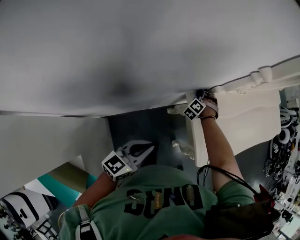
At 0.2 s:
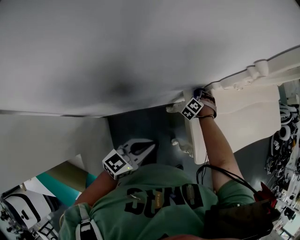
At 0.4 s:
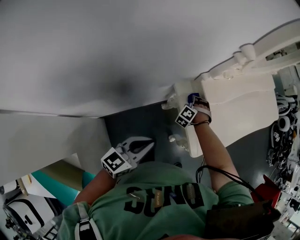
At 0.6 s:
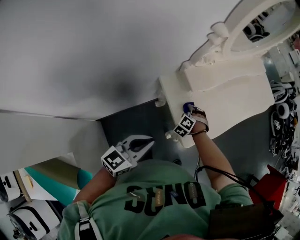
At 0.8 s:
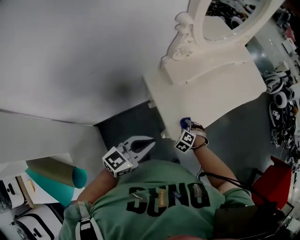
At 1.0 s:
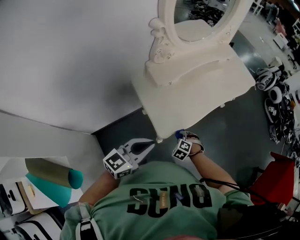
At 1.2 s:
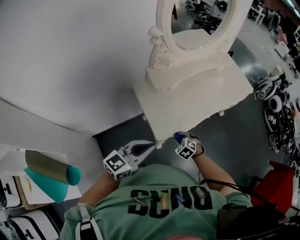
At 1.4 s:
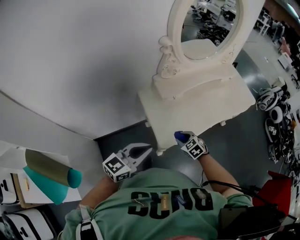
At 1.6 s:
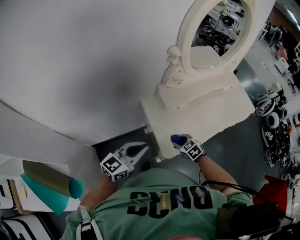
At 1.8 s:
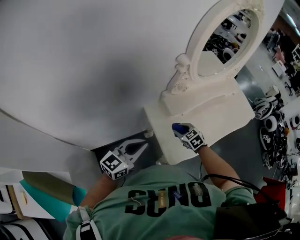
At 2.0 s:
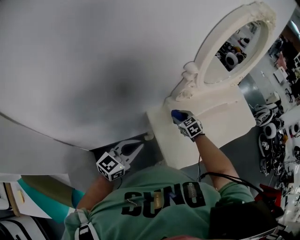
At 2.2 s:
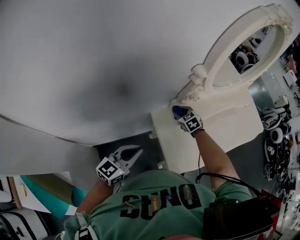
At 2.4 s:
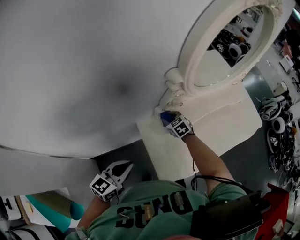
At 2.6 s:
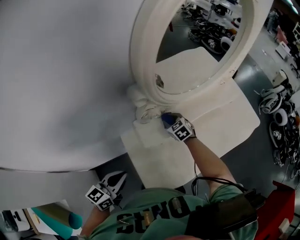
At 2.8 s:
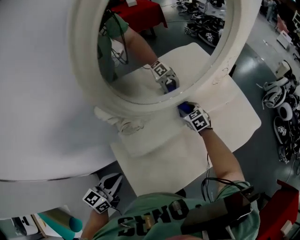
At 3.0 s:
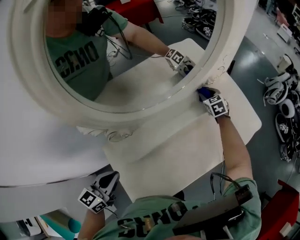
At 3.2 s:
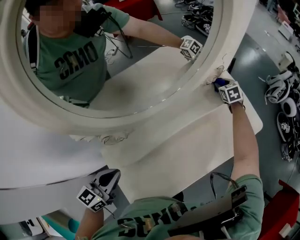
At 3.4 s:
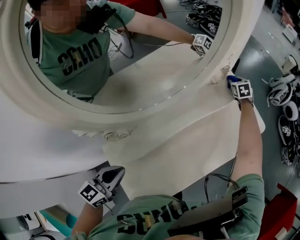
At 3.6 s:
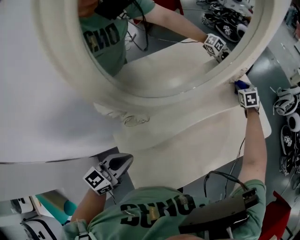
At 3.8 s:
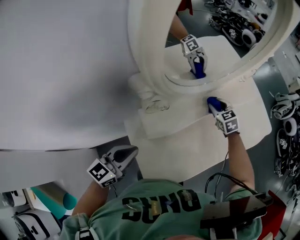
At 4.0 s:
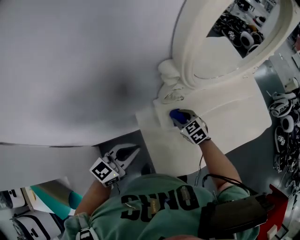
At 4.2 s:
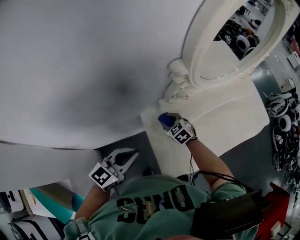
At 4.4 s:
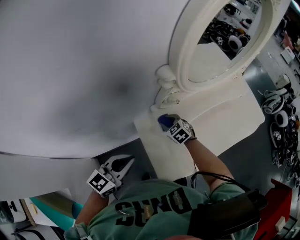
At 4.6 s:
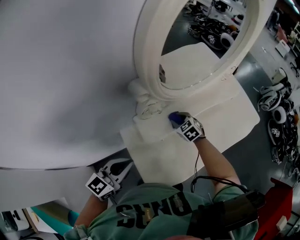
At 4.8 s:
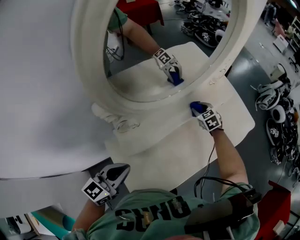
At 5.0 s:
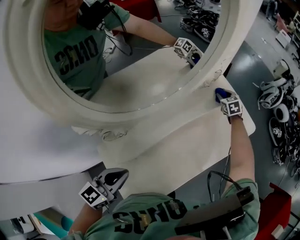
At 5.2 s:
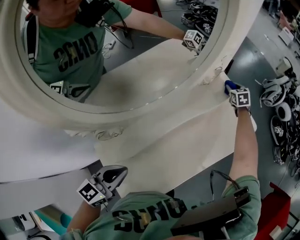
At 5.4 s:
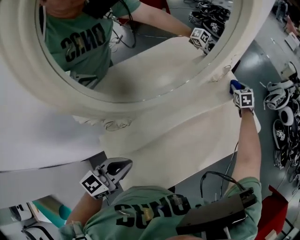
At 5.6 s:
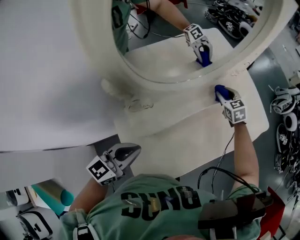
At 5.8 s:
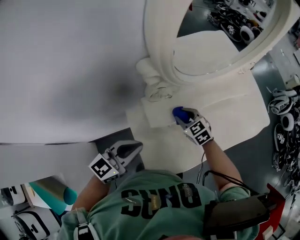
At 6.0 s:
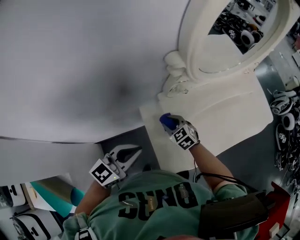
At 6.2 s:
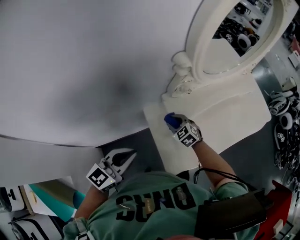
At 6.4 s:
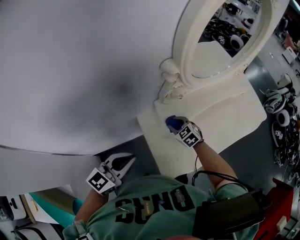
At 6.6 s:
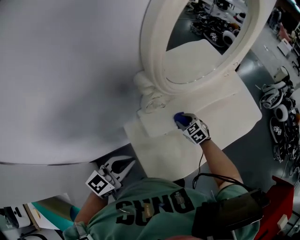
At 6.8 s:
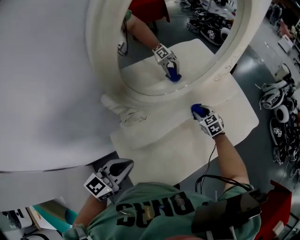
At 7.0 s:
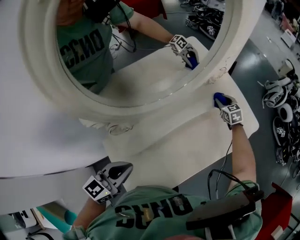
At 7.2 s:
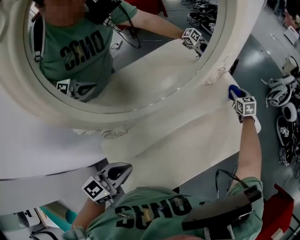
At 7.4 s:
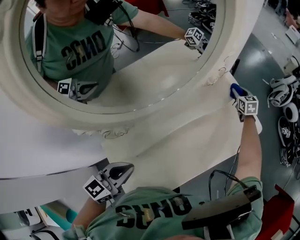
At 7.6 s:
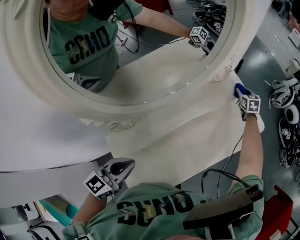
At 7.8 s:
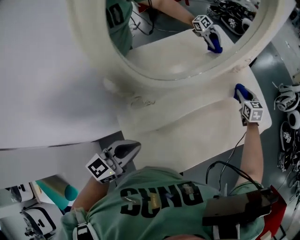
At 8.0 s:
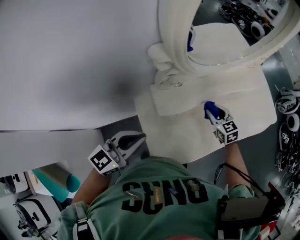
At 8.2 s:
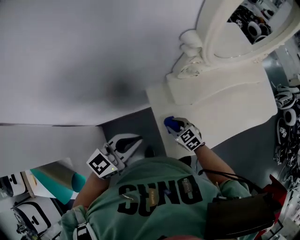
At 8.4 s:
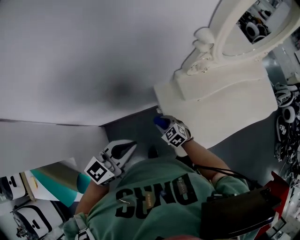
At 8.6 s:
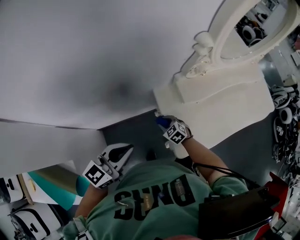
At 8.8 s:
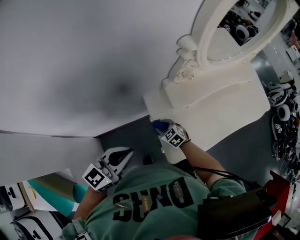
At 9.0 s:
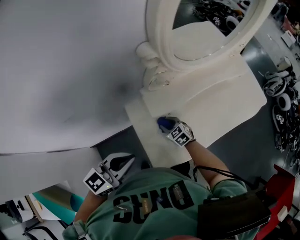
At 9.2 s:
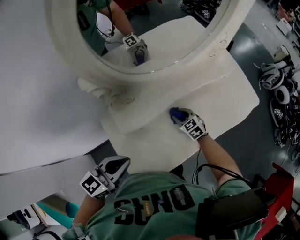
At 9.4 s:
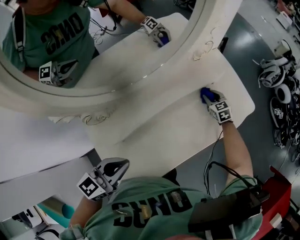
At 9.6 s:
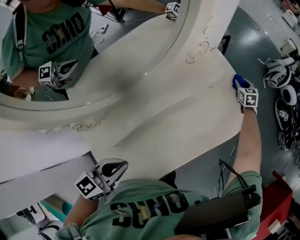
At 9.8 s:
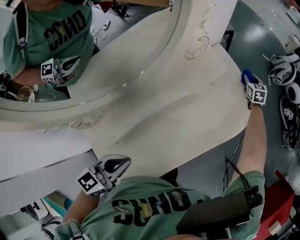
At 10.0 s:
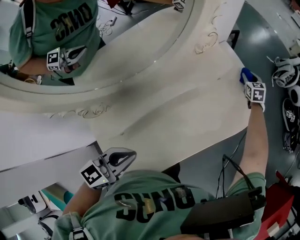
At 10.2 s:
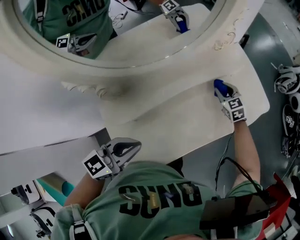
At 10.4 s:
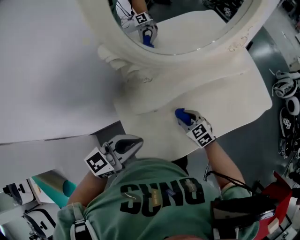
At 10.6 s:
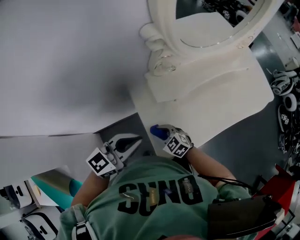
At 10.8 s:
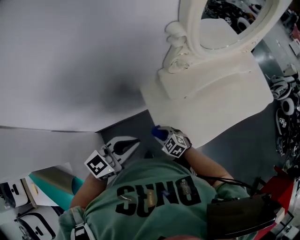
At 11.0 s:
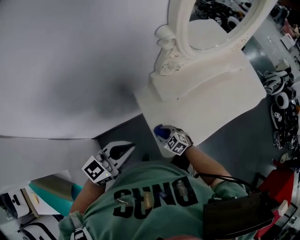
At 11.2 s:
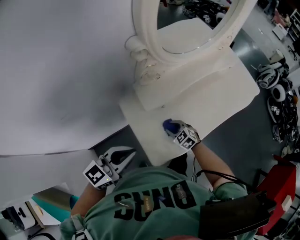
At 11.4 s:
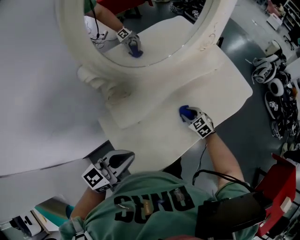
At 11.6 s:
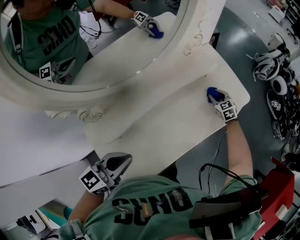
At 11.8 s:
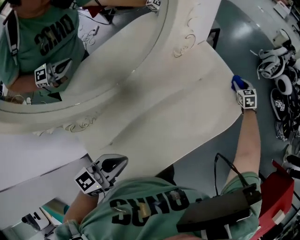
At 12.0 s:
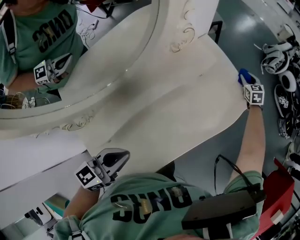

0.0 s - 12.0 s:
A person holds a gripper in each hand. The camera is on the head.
0.0 s - 1.6 s: The left gripper ends up some 25 cm from where it was. Meanwhile the right gripper shifts by approximately 35 cm, and turns by about 60 degrees.
1.6 s - 3.0 s: The left gripper is displaced forward and to the right by some 30 cm, while the right gripper heads forward and to the right, covering some 70 cm, and rotates some 30 degrees.
3.0 s - 4.4 s: The left gripper ends up about 20 cm from where it was, while the right gripper moves some 50 cm, and turns by some 30 degrees.
4.4 s - 6.0 s: The right gripper reaches roughly 5 cm downward, then returns. Meanwhile the left gripper reaches approximately 10 cm downward, then returns.
6.0 s - 7.6 s: The left gripper shifts by some 25 cm, while the right gripper shifts by roughly 80 cm, and changes its angle by about 50 degrees.
7.6 s - 9.0 s: The right gripper moves approximately 70 cm, and changes its angle by some 50 degrees.
10.4 s - 12.0 s: The right gripper moves some 70 cm, and swivels roughly 50 degrees; the left gripper ends up about 25 cm from where it was.

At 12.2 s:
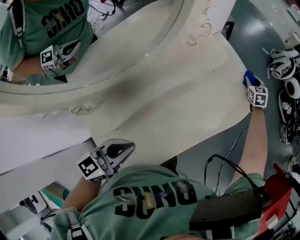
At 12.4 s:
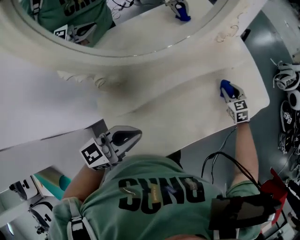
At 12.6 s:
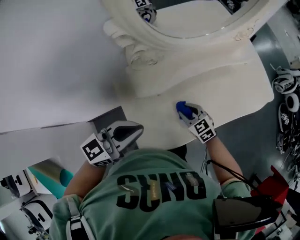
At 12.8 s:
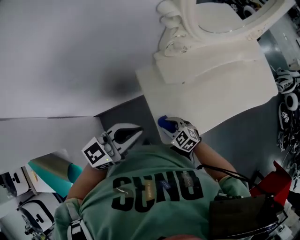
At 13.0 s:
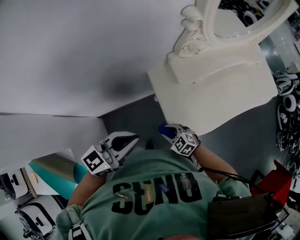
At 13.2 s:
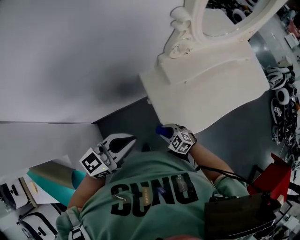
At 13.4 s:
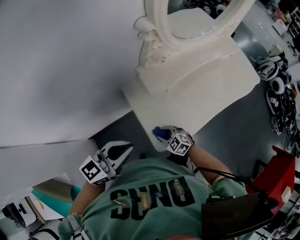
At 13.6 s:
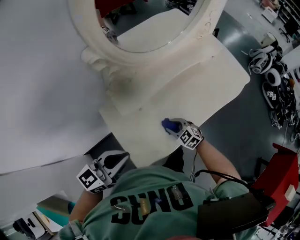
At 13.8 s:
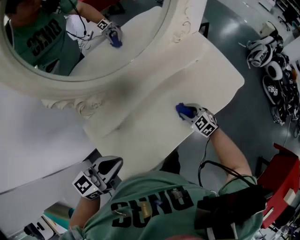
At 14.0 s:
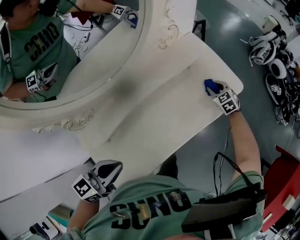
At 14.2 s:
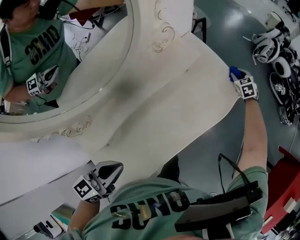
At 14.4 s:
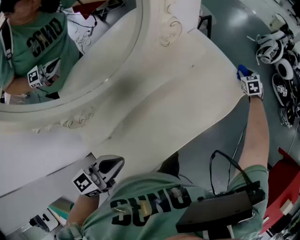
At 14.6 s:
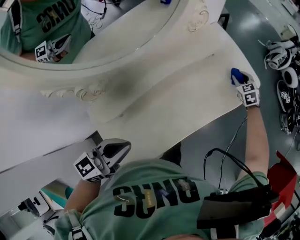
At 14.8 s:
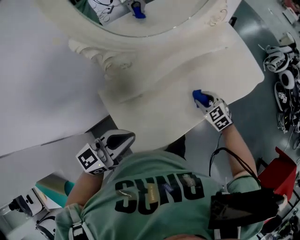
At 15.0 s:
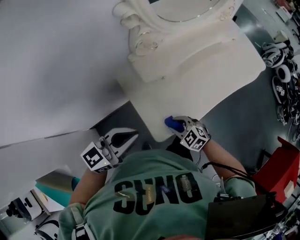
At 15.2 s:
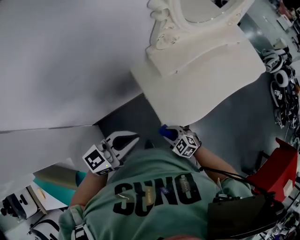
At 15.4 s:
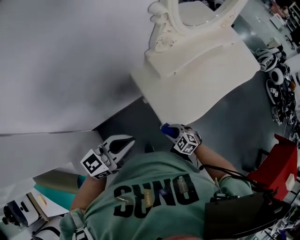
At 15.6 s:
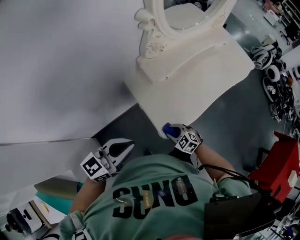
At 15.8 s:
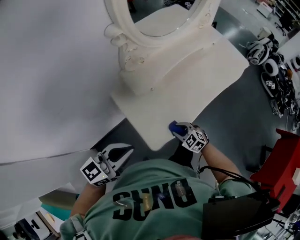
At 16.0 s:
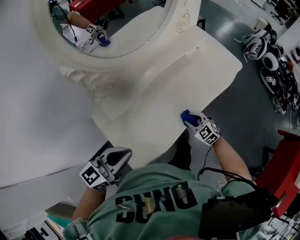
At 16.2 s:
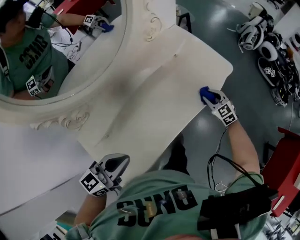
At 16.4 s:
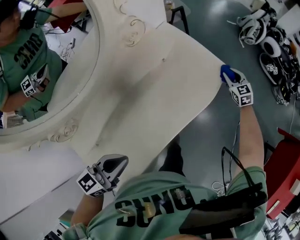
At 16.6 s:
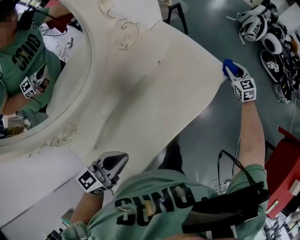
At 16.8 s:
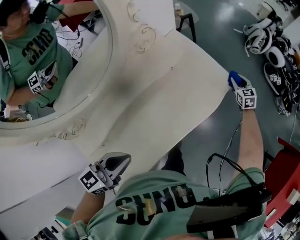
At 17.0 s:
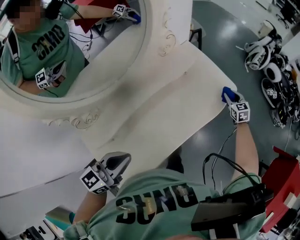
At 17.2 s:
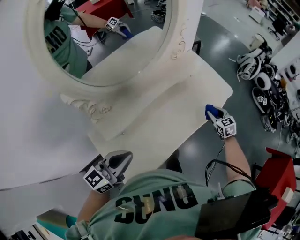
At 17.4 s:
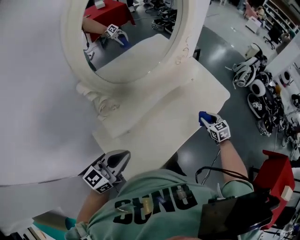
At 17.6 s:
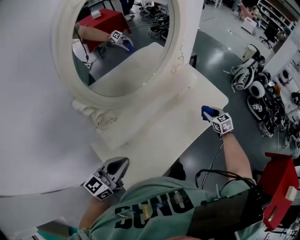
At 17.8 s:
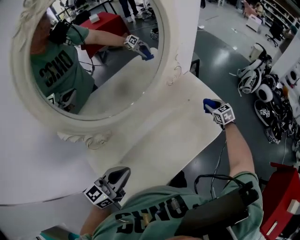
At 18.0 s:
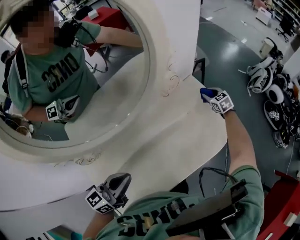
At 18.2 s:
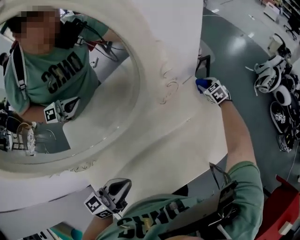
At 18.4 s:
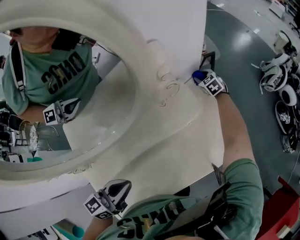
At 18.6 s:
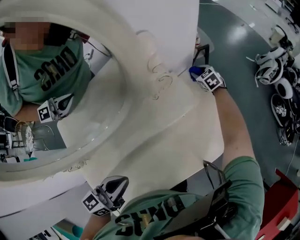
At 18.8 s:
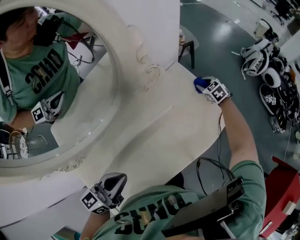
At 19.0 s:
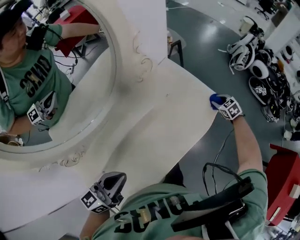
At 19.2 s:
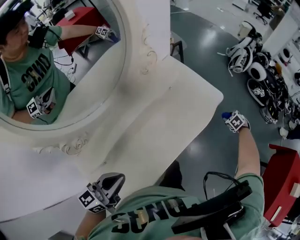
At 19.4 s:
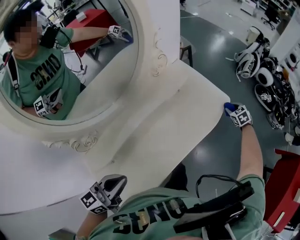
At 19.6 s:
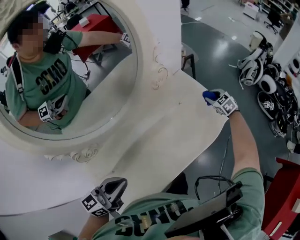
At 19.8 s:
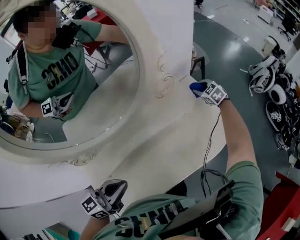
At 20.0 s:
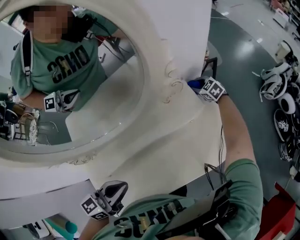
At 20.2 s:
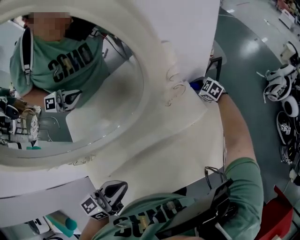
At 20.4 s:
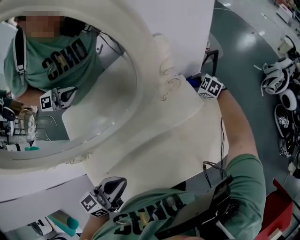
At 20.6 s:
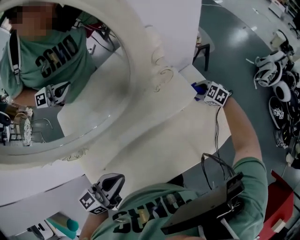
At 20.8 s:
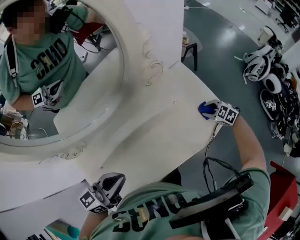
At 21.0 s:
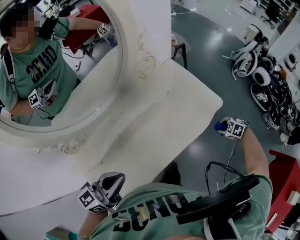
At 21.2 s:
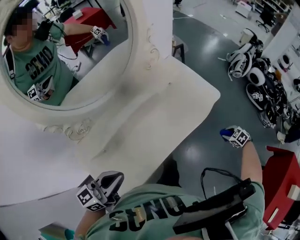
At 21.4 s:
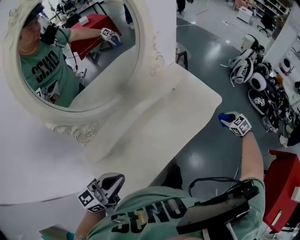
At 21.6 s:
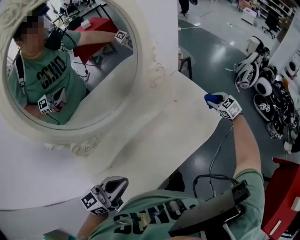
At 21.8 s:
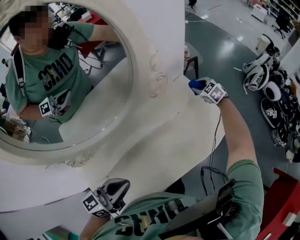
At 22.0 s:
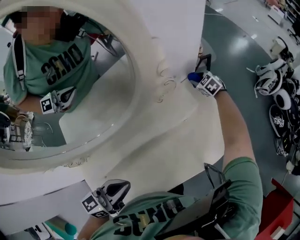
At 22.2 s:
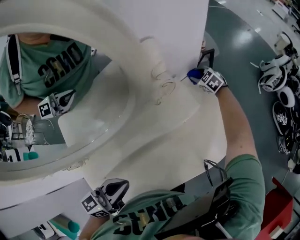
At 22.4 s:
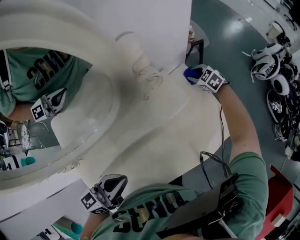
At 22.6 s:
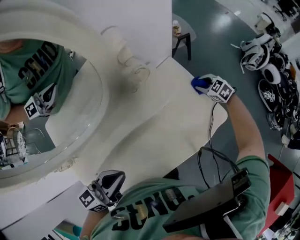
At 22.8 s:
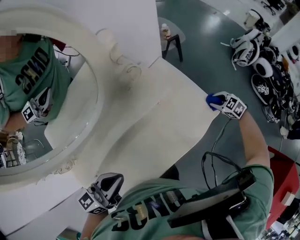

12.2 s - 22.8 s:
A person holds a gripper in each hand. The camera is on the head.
12.2 s - 13.8 s: The right gripper swivels about 40 degrees.
13.8 s - 15.2 s: The right gripper changes place by about 60 cm. The left gripper changes place by approximately 35 cm.
15.2 s - 16.8 s: Both grippers are carried some 80 cm. The right gripper swivels approximately 60 degrees.
16.8 s - 18.2 s: The left gripper travels forward and to the left by some 10 cm. The right gripper travels to the left and forward by about 35 cm, and swivels about 30 degrees.
18.2 s - 19.8 s: The right gripper reaches roughly 10 cm downward, then returns.
19.8 s - 21.2 s: The right gripper changes place by approximately 50 cm, and rotates roughly 30 degrees; the left gripper ends up roughly 15 cm from where it was.
21.2 s - 22.8 s: The left gripper moves forward and to the right, some 20 cm, while the right gripper heads forward, covering roughly 30 cm.

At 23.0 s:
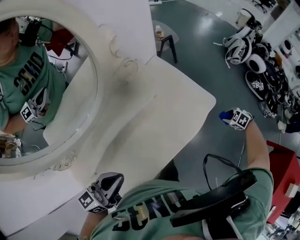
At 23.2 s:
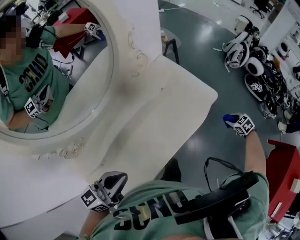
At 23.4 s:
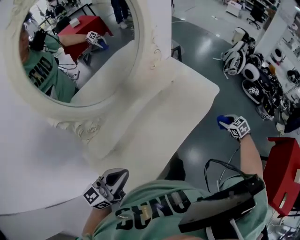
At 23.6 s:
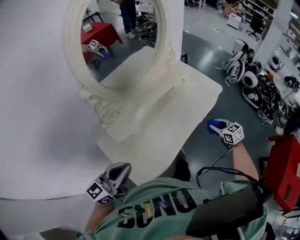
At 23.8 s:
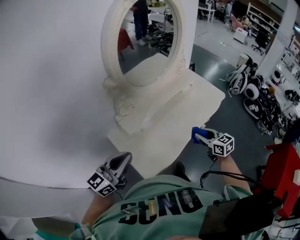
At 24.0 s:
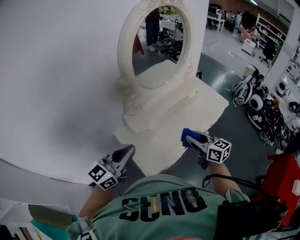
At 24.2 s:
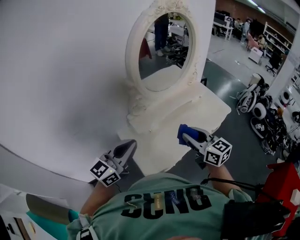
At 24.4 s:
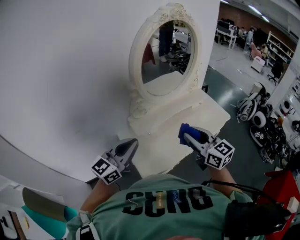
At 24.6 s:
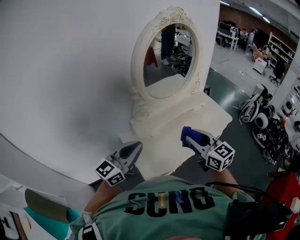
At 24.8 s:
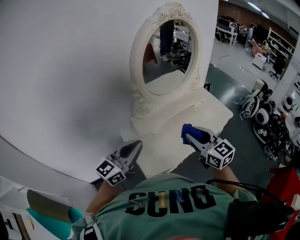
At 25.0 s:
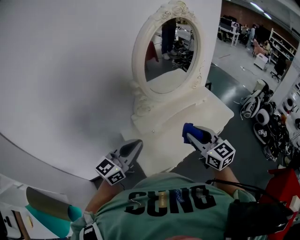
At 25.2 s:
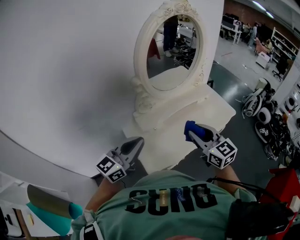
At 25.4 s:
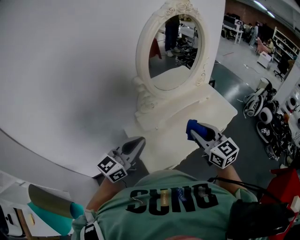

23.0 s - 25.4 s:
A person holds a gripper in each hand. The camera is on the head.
23.0 s - 24.2 s: Both grippers are carried to the left and backward, some 60 cm. The right gripper goes roughly 50 cm upward, and tips its fingers upward by roughly 70 degrees, while the left gripper travels upward by roughly 20 cm, and swivels approximately 30 degrees.
24.2 s - 25.4 s: The grippers make only small movements.
